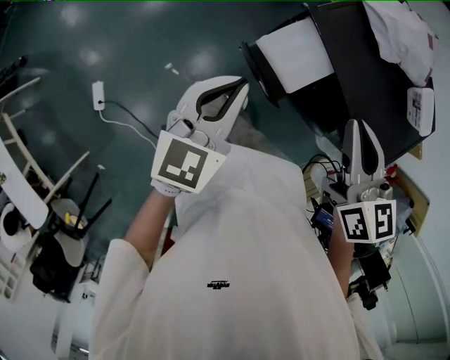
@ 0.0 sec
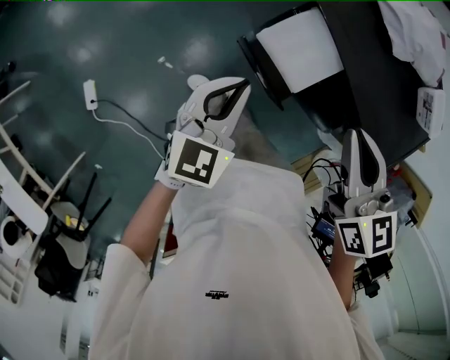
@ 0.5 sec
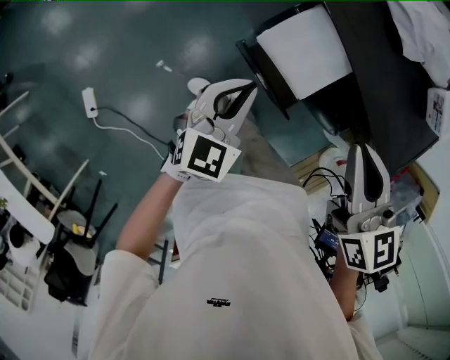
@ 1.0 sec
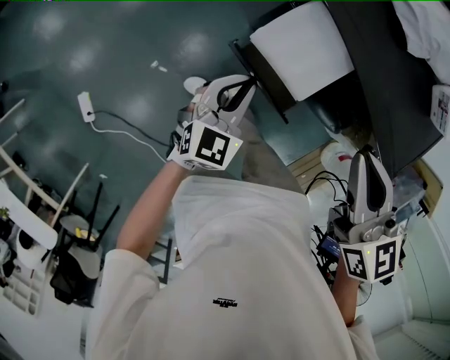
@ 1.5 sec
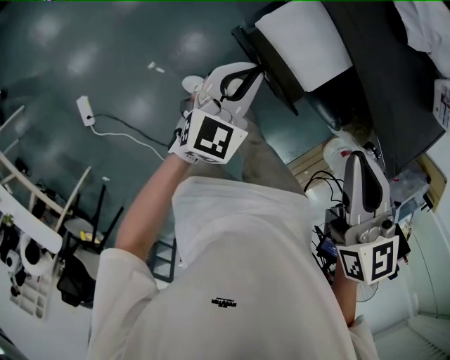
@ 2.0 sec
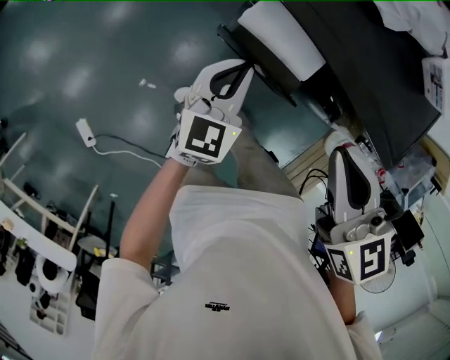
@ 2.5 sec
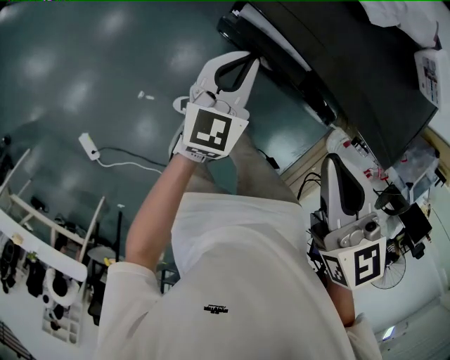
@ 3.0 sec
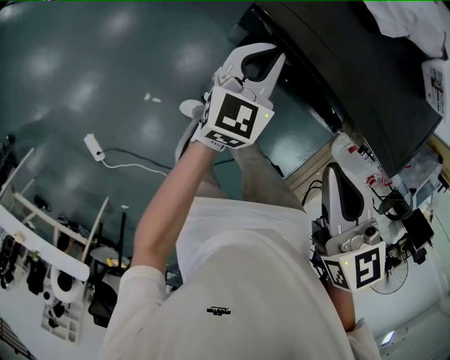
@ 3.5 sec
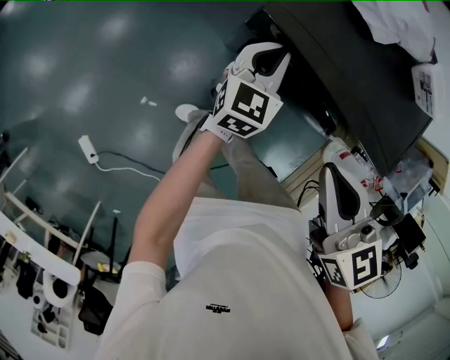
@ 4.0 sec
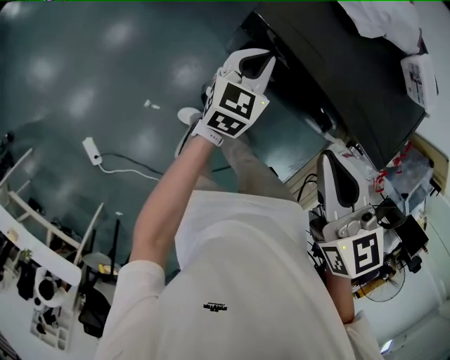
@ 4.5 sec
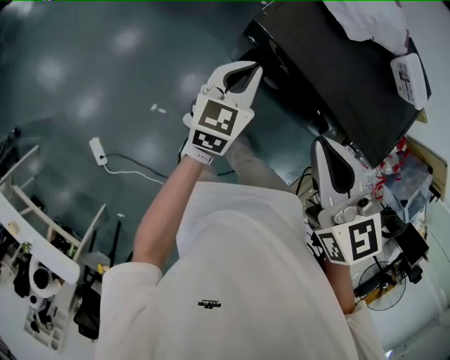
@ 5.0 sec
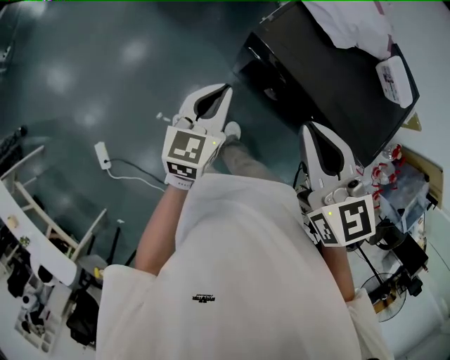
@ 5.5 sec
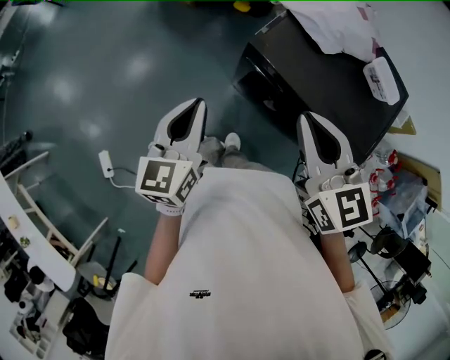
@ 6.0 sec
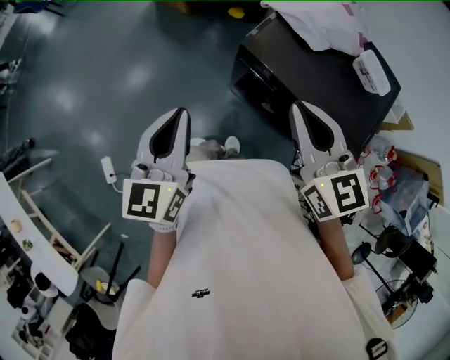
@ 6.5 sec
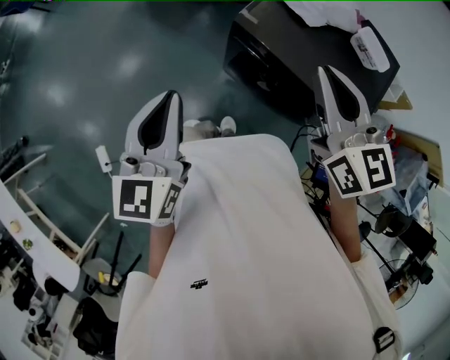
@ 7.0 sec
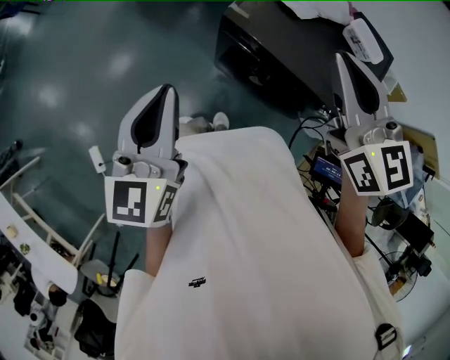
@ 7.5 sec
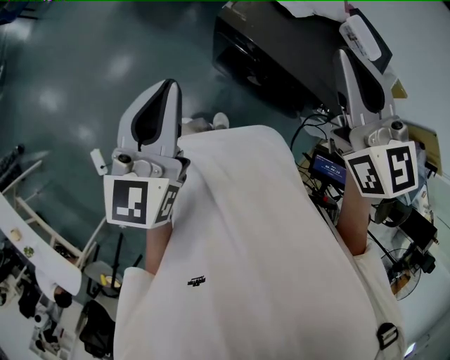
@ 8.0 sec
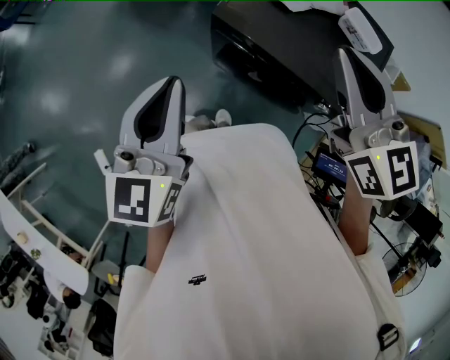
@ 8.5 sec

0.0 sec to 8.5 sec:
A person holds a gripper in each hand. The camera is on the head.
0.0 sec to 2.0 sec: The left gripper heads downward, covering about 20 cm. The right gripper shifts approximately 10 cm downward.
2.0 sec to 4.0 sec: The left gripper goes some 15 cm forward and to the right.
4.0 sec to 6.5 sec: The left gripper moves upward, backward and to the left, roughly 40 cm, and changes its angle by some 30 degrees; the right gripper goes approximately 15 cm upward, and rotates some 20 degrees.
6.5 sec to 8.5 sec: The left gripper moves to the right, approximately 5 cm. Meanwhile the right gripper moves to the right and upward, about 10 cm.

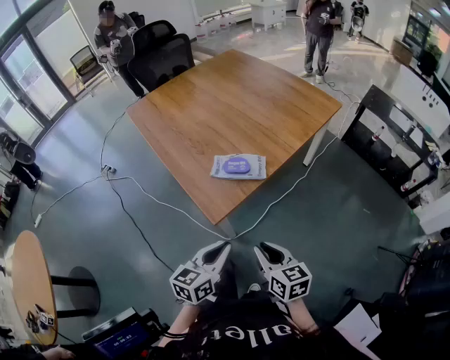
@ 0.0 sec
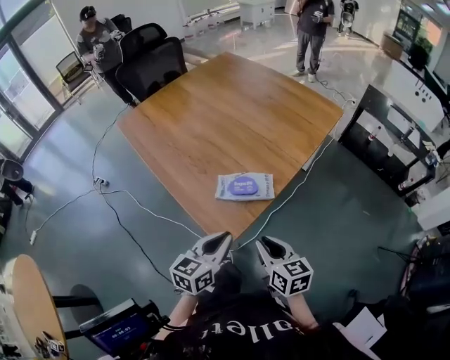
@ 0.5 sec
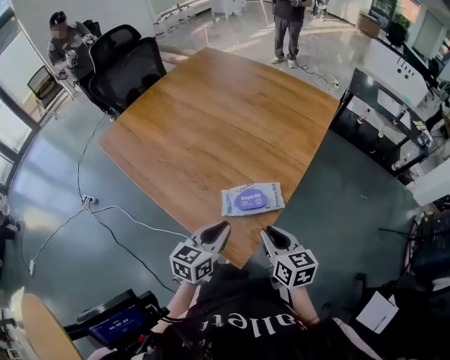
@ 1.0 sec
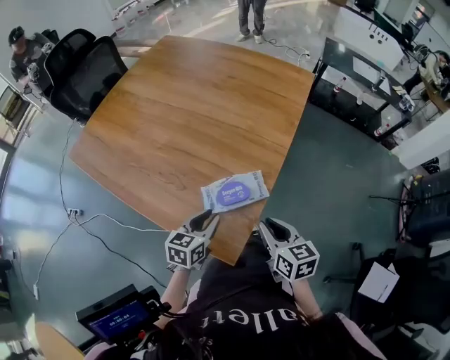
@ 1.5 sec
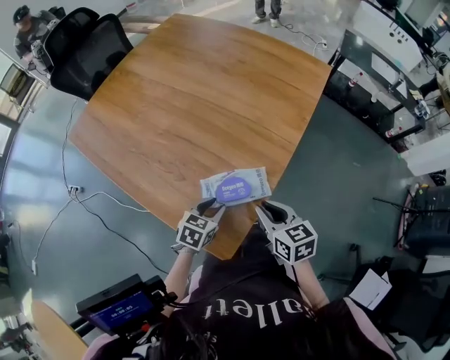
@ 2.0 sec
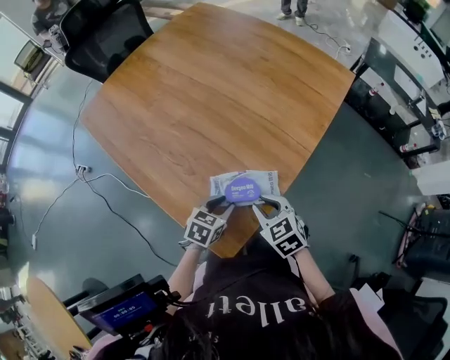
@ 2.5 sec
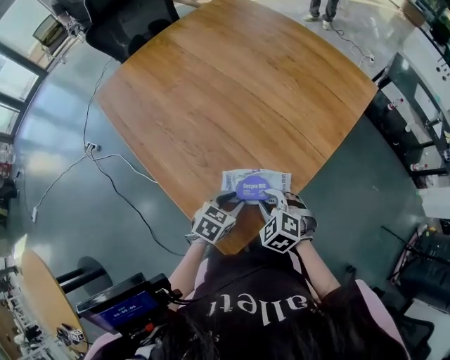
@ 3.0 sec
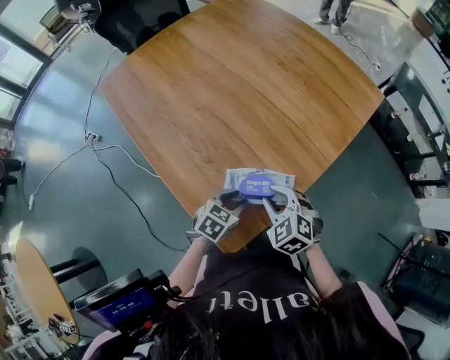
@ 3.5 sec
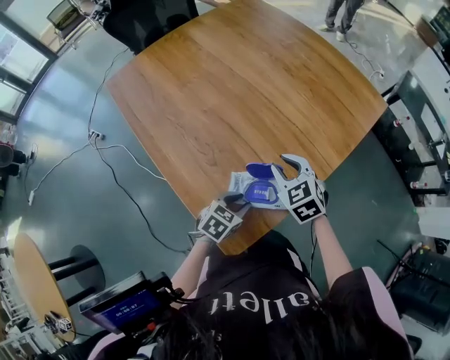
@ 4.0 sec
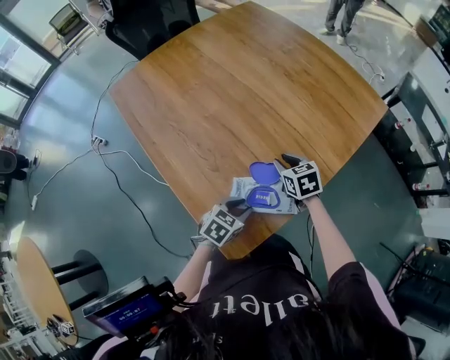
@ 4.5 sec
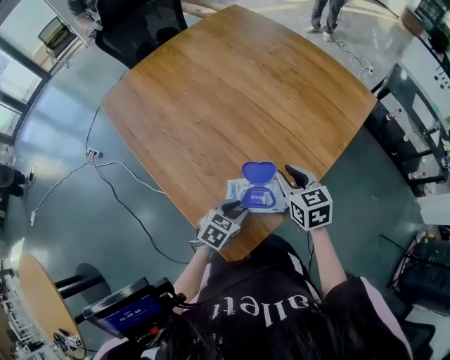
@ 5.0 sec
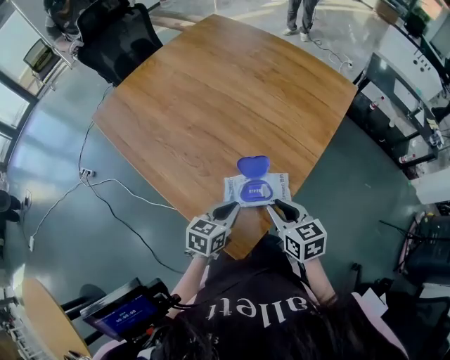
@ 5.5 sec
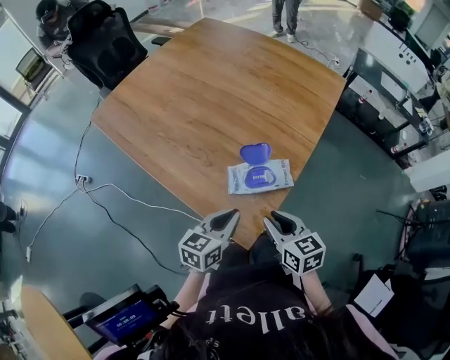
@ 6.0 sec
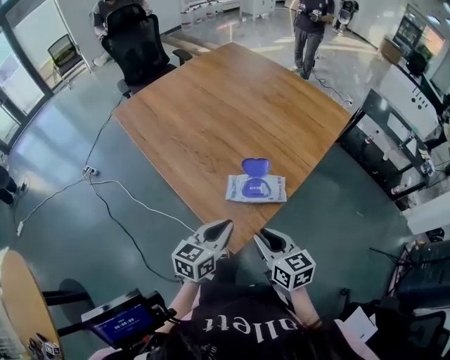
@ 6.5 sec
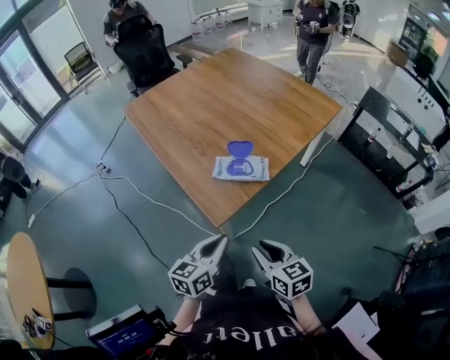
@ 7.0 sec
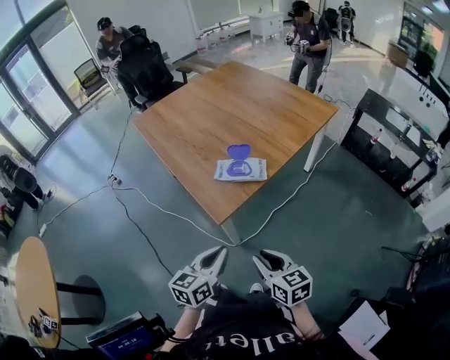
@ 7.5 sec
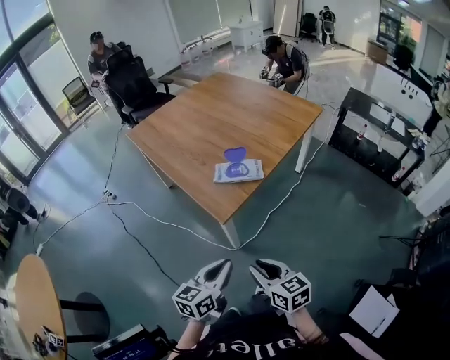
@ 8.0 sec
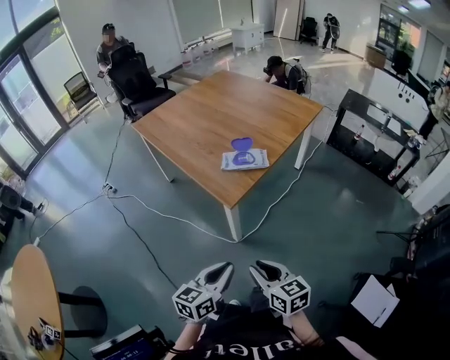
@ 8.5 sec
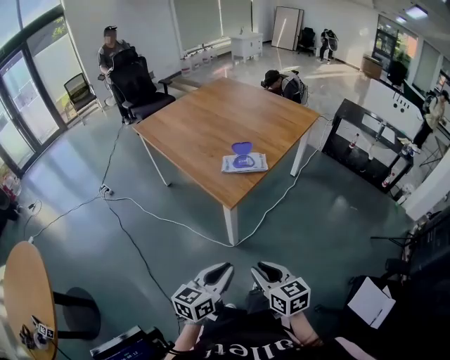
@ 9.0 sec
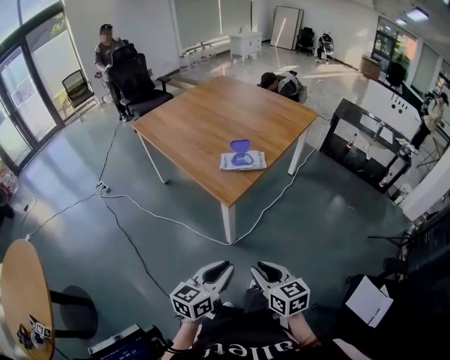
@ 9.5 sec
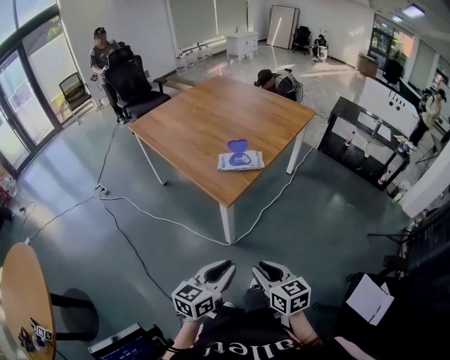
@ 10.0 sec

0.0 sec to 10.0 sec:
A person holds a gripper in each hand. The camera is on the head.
0.0 sec to 2.0 sec: The left gripper heads forward and downward, covering roughly 35 cm, swivels some 40 degrees, and opens its fingers; the right gripper goes roughly 30 cm forward.
2.0 sec to 4.0 sec: The right gripper goes roughly 15 cm forward and to the left, and rolls counterclockwise, seen from behind, by approximately 40 degrees.
4.0 sec to 6.0 sec: The left gripper is displaced upward and backward by some 15 cm, changes its angle by approximately 30 degrees, and closes its fingers. The right gripper shifts approximately 25 cm backward, and rotates around the line of its fingers by roughly 40 degrees, clockwise from behind.
6.0 sec to 8.0 sec: The two grippers go about 35 cm backward.
8.0 sec to 10.0 sec: Both grippers move backward, roughly 10 cm.

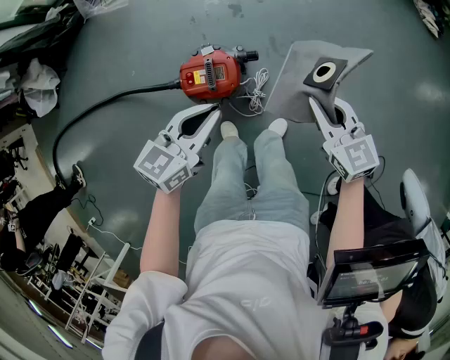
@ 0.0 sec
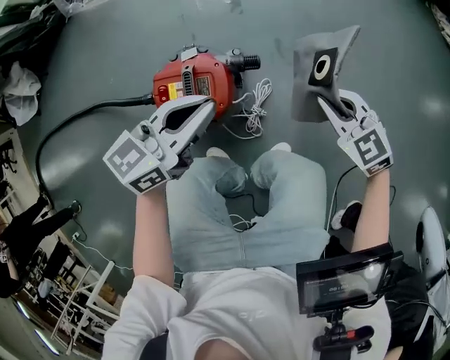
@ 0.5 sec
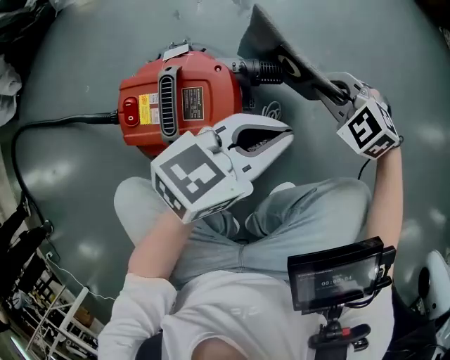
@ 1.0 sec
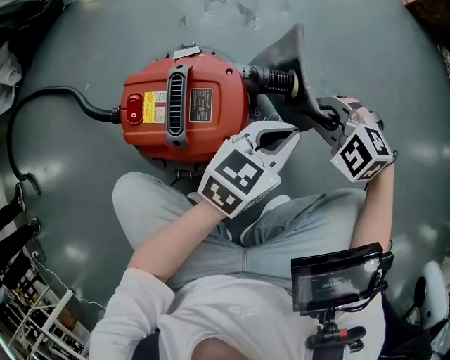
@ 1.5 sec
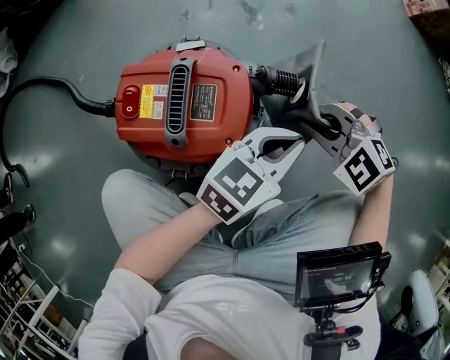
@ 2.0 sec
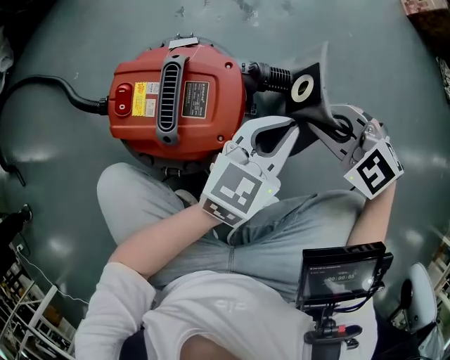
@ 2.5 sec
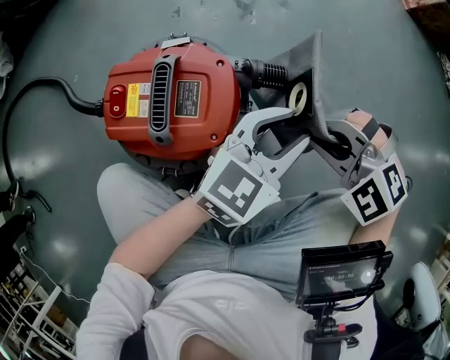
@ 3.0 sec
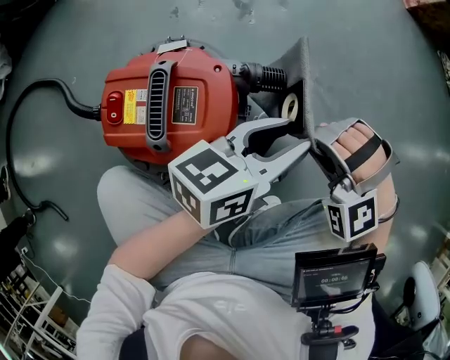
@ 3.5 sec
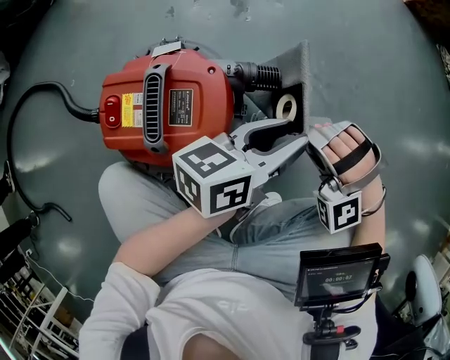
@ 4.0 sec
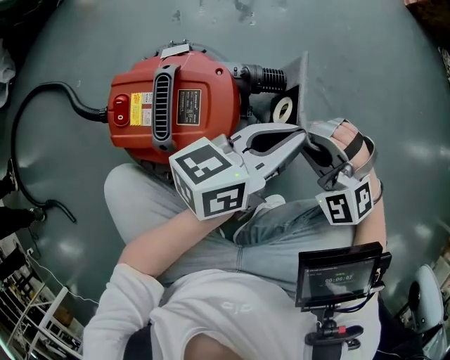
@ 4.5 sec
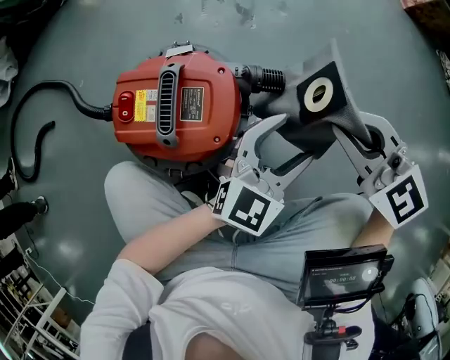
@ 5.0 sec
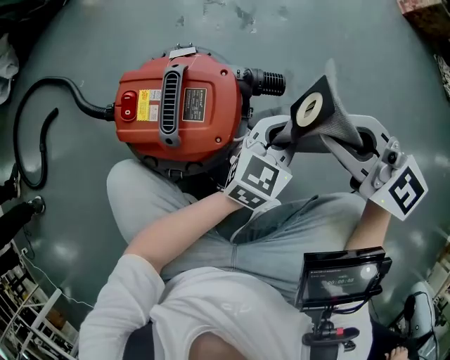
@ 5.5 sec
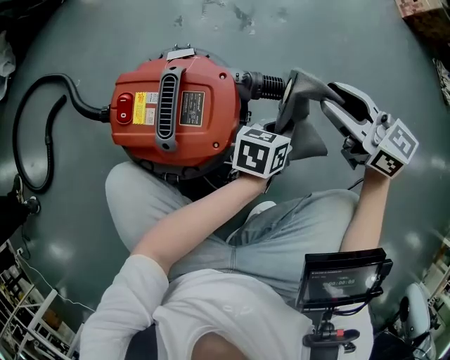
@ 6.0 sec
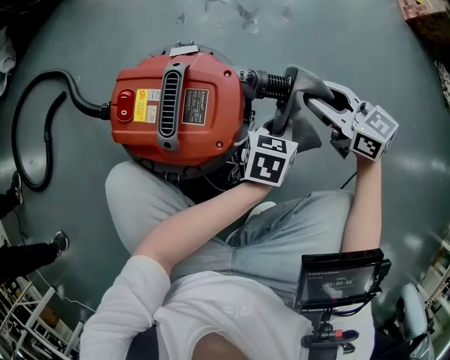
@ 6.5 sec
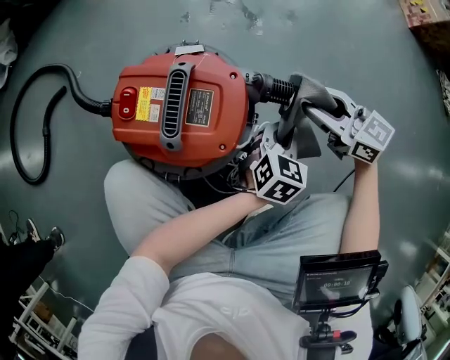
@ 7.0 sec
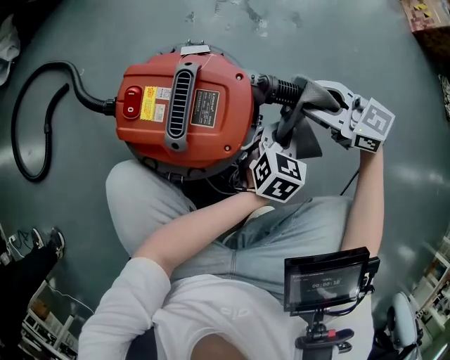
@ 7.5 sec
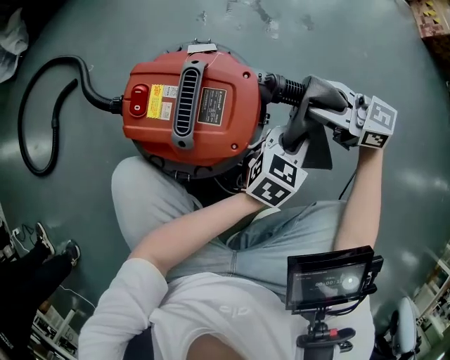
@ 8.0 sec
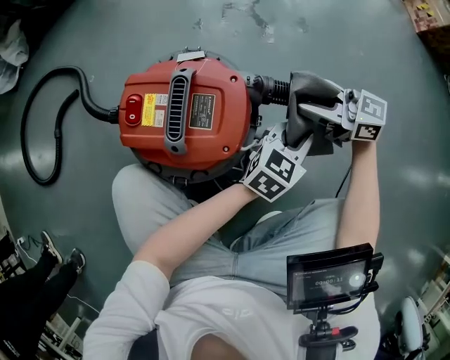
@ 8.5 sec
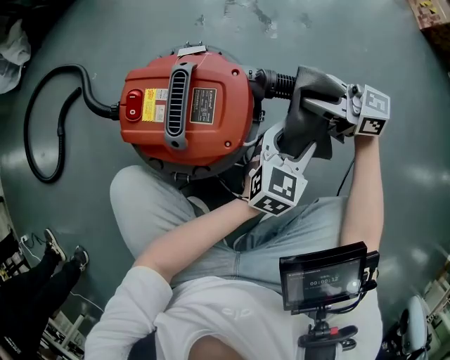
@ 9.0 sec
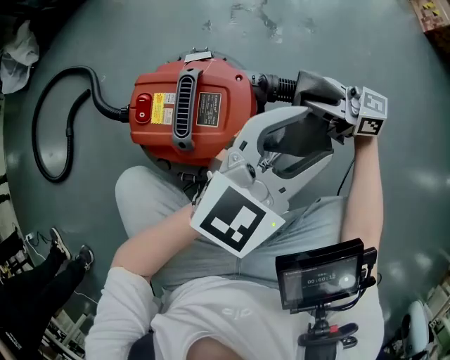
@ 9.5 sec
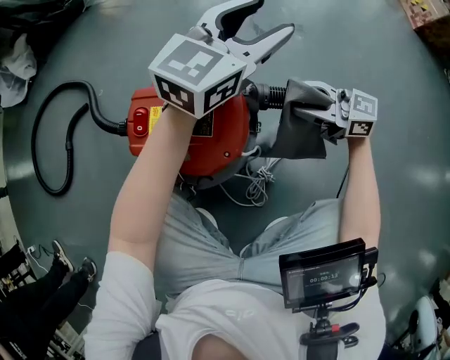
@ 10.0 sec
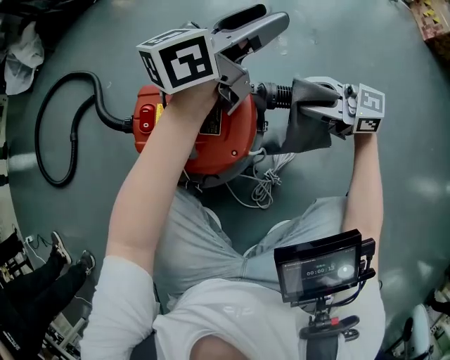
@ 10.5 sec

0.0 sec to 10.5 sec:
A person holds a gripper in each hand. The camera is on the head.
0.0 sec to 2.0 sec: The two grippers go approximately 50 cm downward. The right gripper rotates around the line of its fingers by some 60 degrees, counterclockwise from behind.
2.0 sec to 4.0 sec: The right gripper turns by about 50 degrees, while the left gripper changes its angle by approximately 30 degrees, and opens its fingers.
4.0 sec to 6.5 sec: The left gripper moves downward, about 15 cm, changes its angle by roughly 40 degrees, and closes up. The right gripper moves some 10 cm upward and comes back, twists roughly 90 degrees clockwise, seen from behind, and opens up.
6.5 sec to 8.5 sec: The right gripper turns by about 30 degrees. The left gripper swivels some 20 degrees.
8.5 sec to 10.5 sec: The left gripper changes place by roughly 30 cm, changes its angle by about 30 degrees, and opens up.
